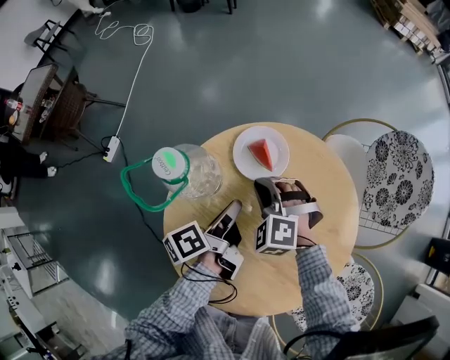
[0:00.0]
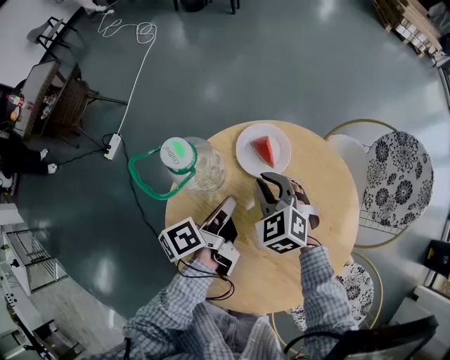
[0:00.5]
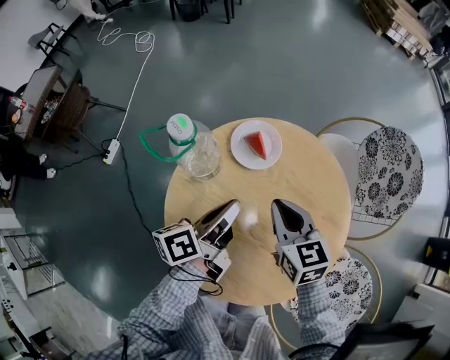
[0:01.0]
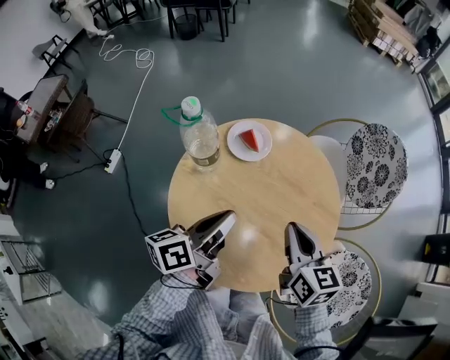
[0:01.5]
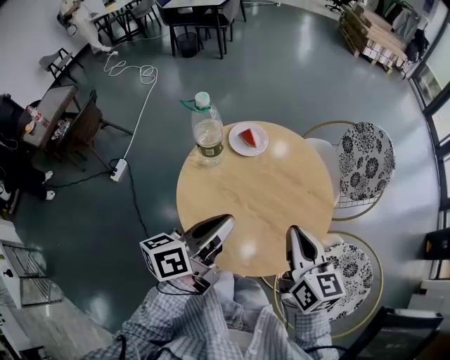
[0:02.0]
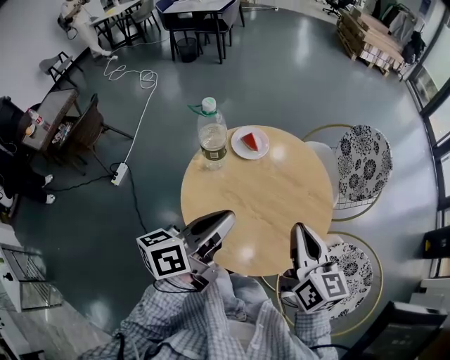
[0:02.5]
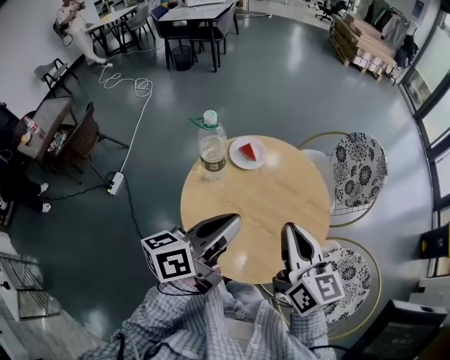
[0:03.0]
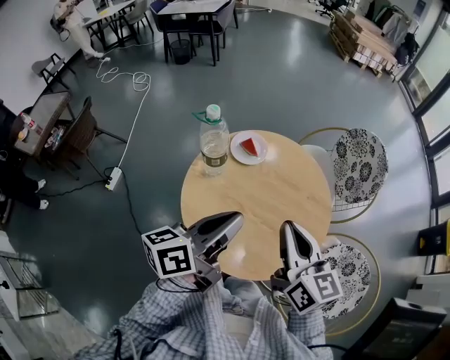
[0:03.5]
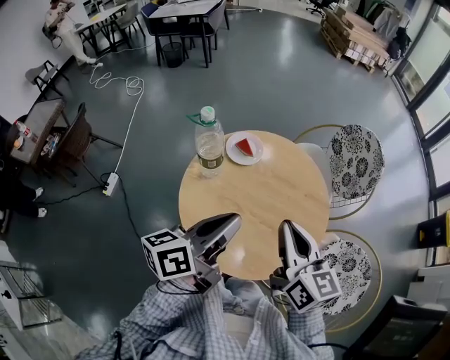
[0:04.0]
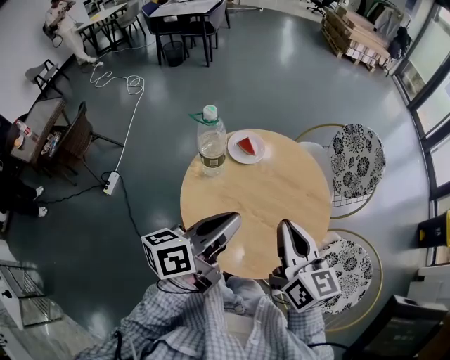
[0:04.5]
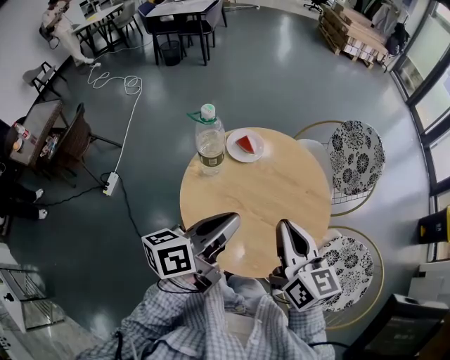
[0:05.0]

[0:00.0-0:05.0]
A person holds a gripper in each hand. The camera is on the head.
0:00.0 to 0:02.5: The right gripper moves roughly 35 cm, and twists about 80 degrees clockwise, seen from behind.
0:02.5 to 0:05.0: The right gripper shifts by approximately 5 cm.

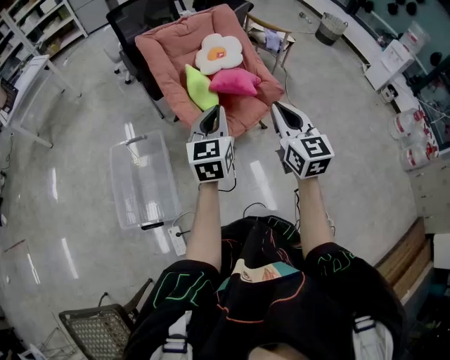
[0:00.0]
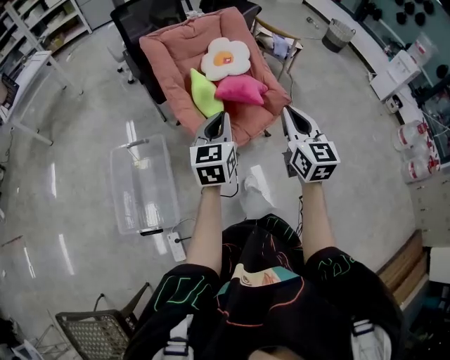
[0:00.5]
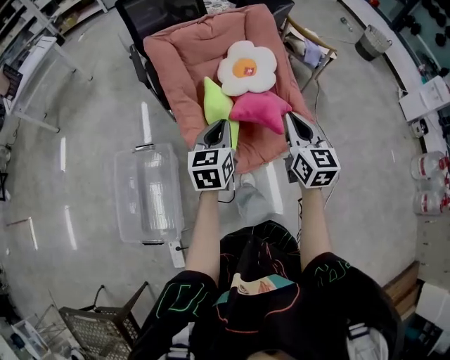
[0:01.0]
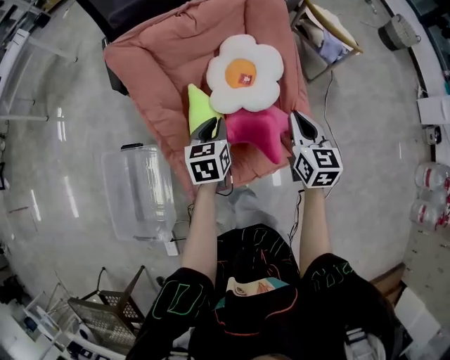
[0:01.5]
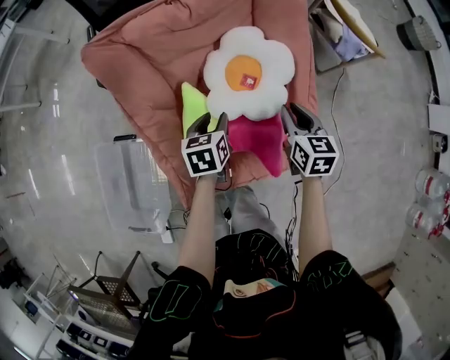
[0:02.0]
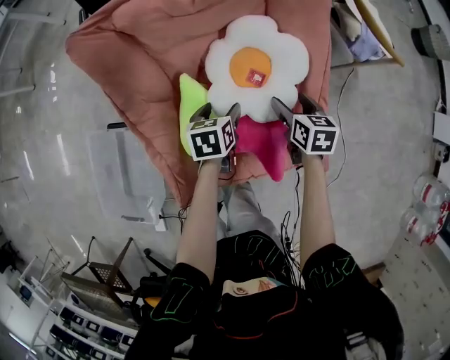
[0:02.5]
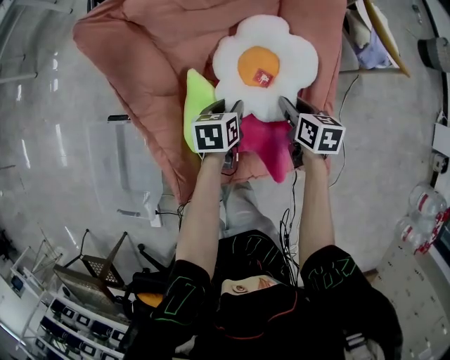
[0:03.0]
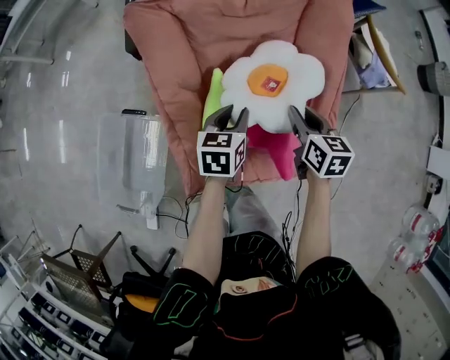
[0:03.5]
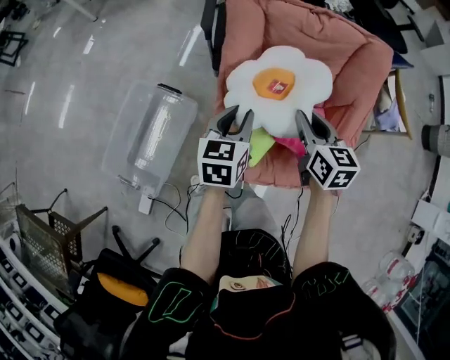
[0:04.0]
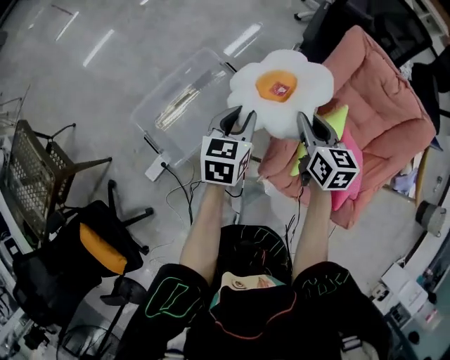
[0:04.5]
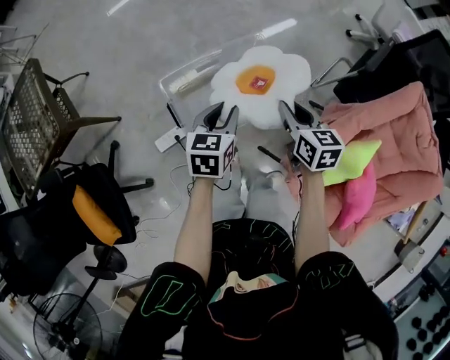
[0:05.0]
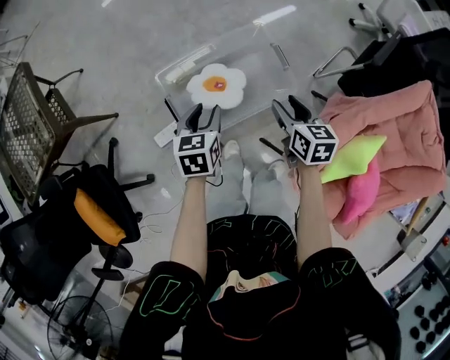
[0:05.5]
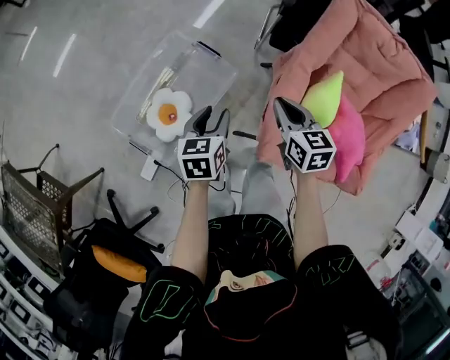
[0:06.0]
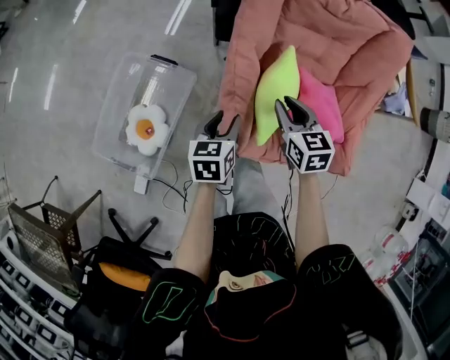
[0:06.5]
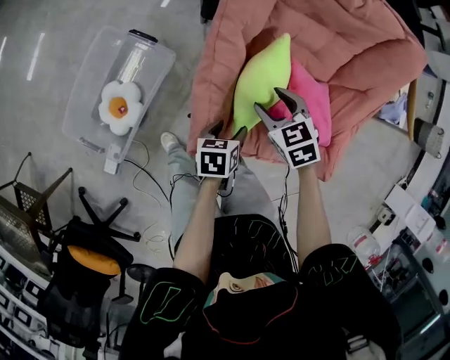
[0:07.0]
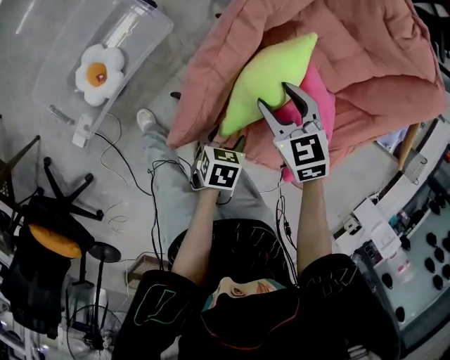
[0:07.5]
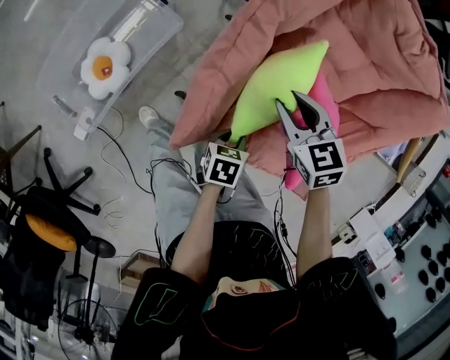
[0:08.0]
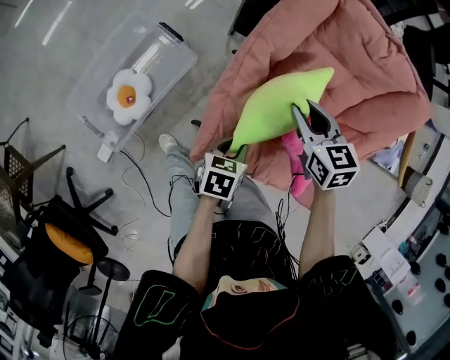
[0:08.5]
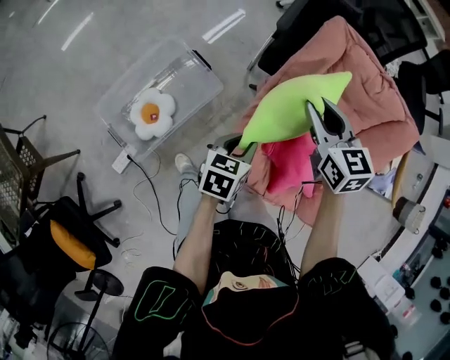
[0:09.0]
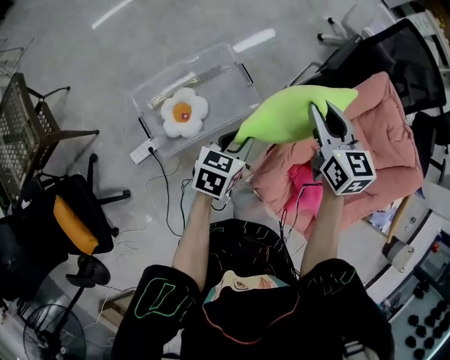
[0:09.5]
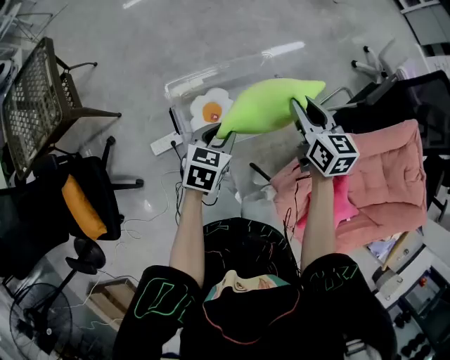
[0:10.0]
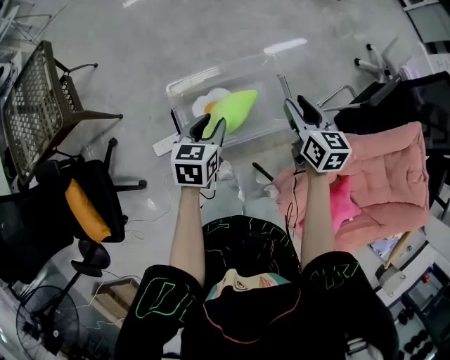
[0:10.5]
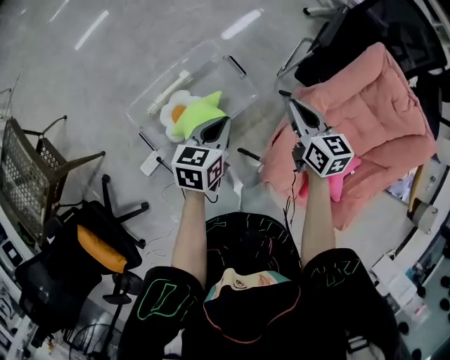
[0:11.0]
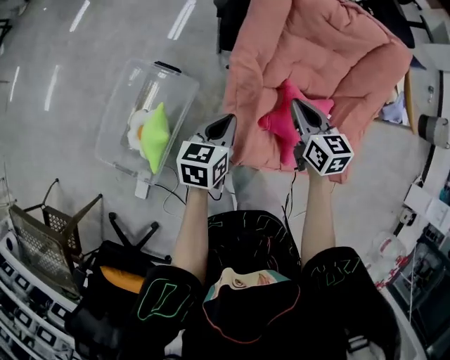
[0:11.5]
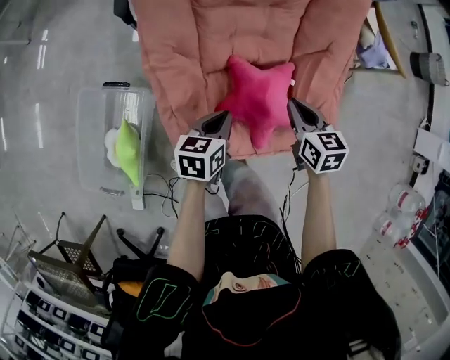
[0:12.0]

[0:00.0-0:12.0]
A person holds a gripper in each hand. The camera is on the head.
0:00.0 to 0:02.0: Both grippers are carried forward, some 60 cm. Both grippers travel together downward, some 30 cm. The right gripper tips its fingers downward by approximately 30 degrees. Meanwhile the left gripper tilts its fingers about 40 degrees downward, and opens up.
0:02.0 to 0:04.0: The left gripper is displaced to the left, upward and backward by about 25 cm, and rotates approximately 20 degrees, while the right gripper goes about 25 cm to the left and upward, turns by about 20 degrees, and opens and closes again.
0:04.0 to 0:06.0: The left gripper turns by approximately 20 degrees.
0:06.0 to 0:08.0: The left gripper shifts approximately 40 cm to the right and downward, and swivels about 30 degrees; the right gripper shifts approximately 25 cm to the right and downward, and turns by some 30 degrees.
0:08.0 to 0:10.0: Both grippers are carried roughly 50 cm. The right gripper swivels approximately 30 degrees. Meanwhile the left gripper swivels about 40 degrees.
0:10.0 to 0:12.0: Both grippers are carried roughly 60 cm. The left gripper swivels some 50 degrees; the right gripper rotates roughly 60 degrees.

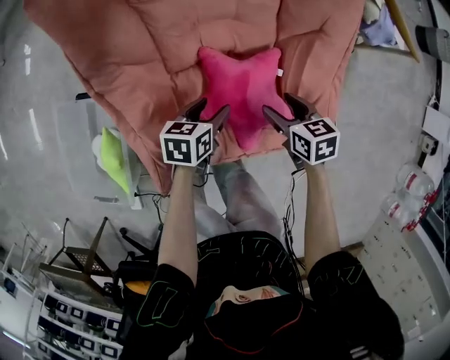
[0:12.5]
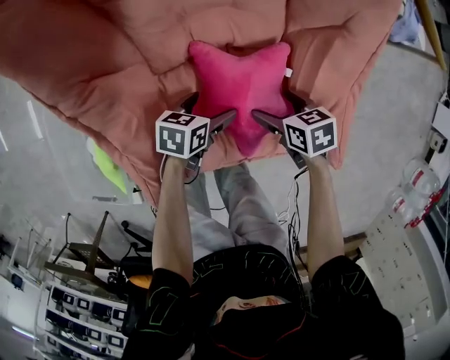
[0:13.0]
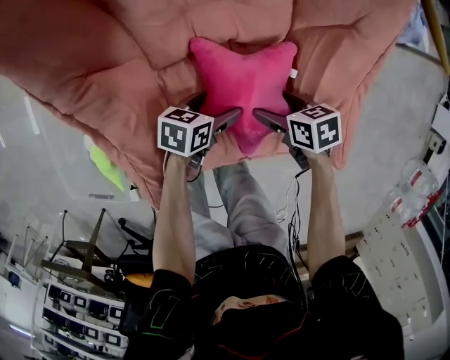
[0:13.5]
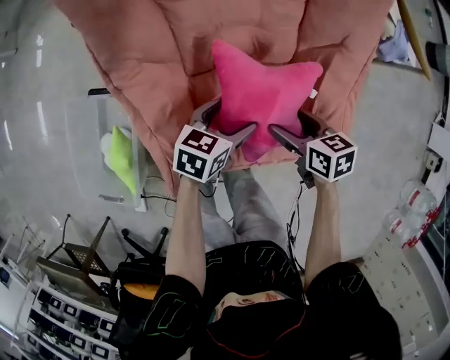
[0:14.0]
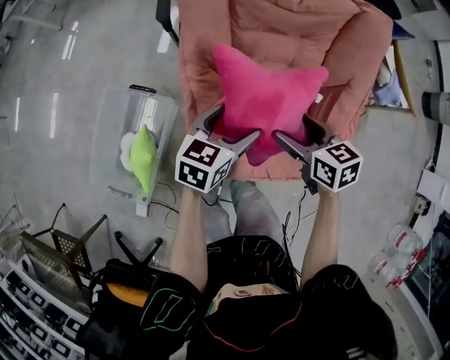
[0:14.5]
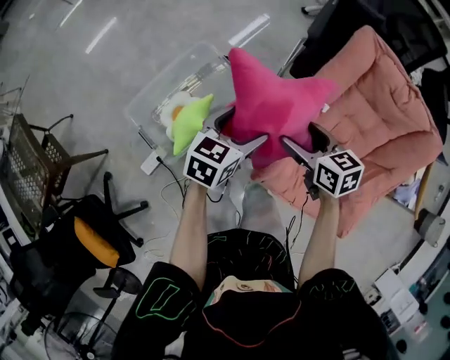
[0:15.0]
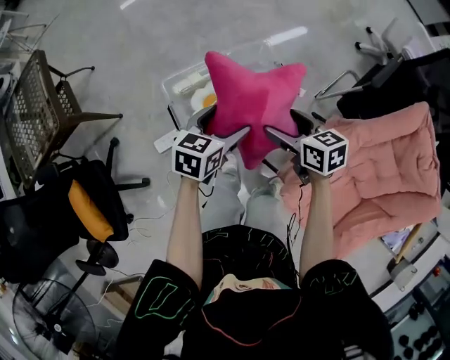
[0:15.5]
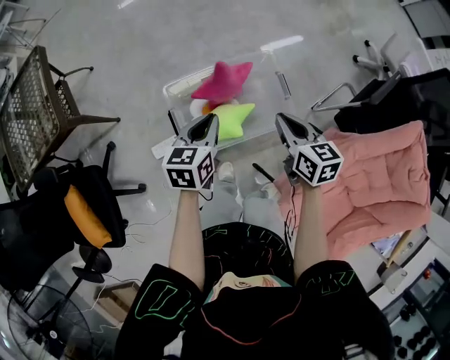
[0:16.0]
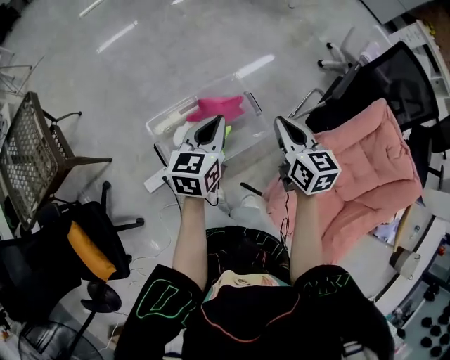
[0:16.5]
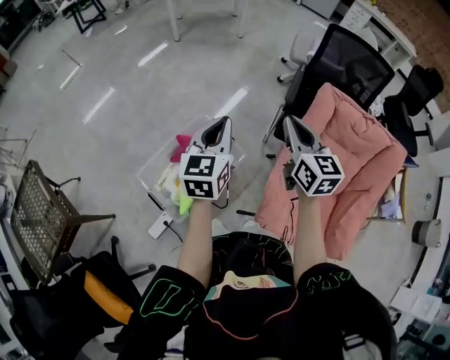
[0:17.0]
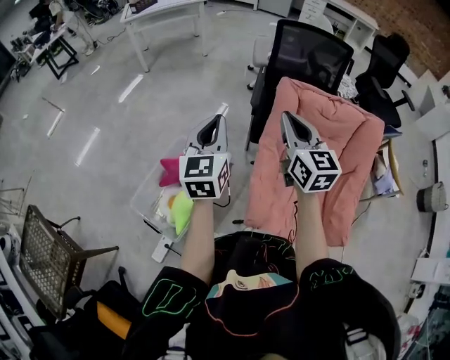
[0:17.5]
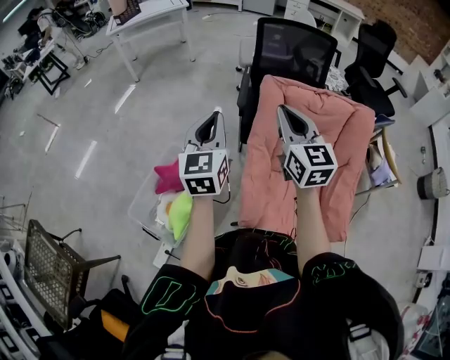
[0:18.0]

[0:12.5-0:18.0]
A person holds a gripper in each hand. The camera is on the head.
0:12.5 to 0:14.5: Both grippers move upward, about 20 cm. The left gripper rotates about 20 degrees.
0:14.5 to 0:16.0: The pair of grippers is taken about 60 cm. The left gripper swivels approximately 70 degrees, and closes. Meanwhile the right gripper changes its angle by roughly 40 degrees, and closes its fingers.
0:16.0 to 0:18.0: The left gripper changes place by roughly 50 cm, and swivels roughly 50 degrees; the right gripper changes place by roughly 50 cm, and angles its fingers upward, by some 30 degrees.

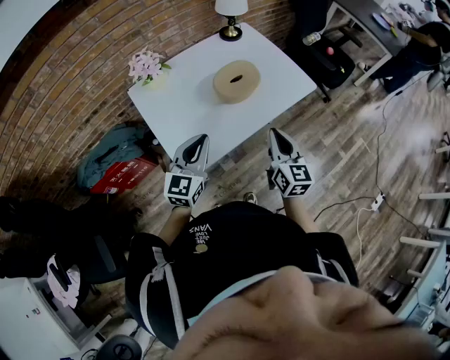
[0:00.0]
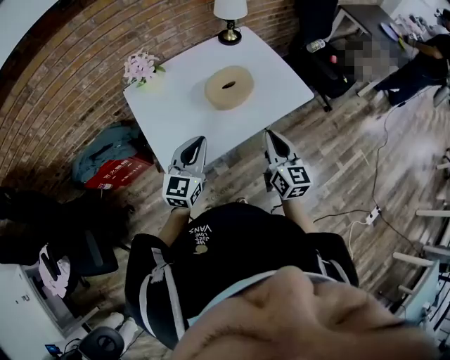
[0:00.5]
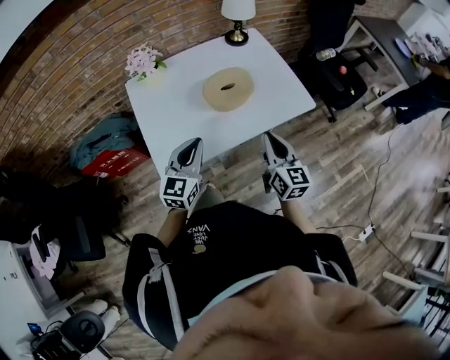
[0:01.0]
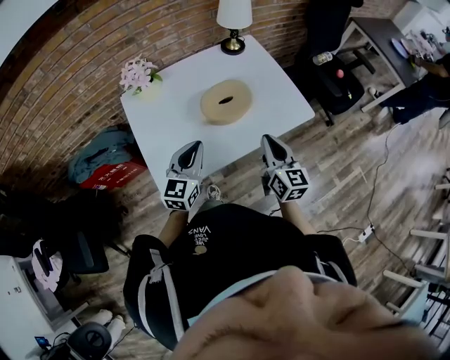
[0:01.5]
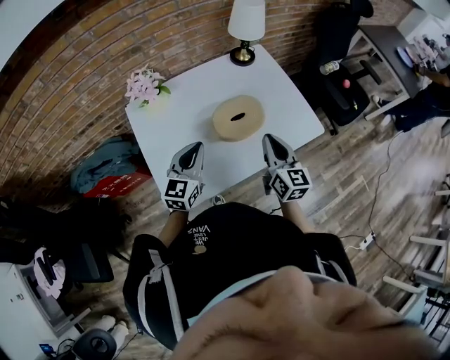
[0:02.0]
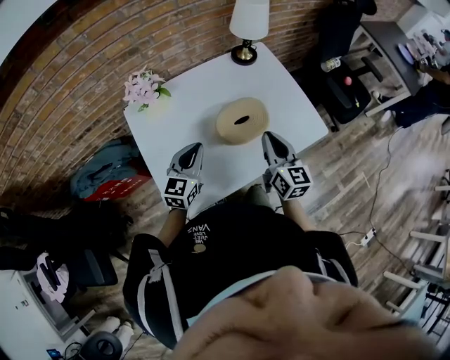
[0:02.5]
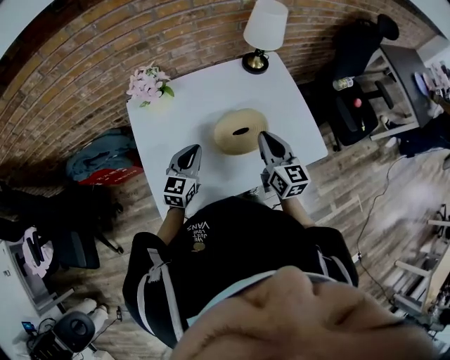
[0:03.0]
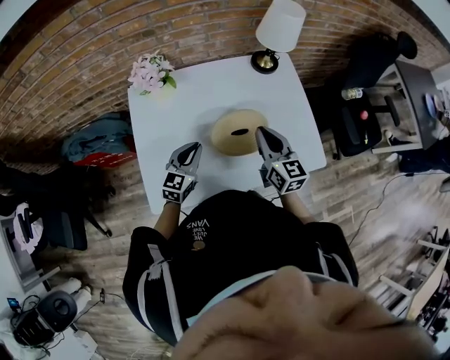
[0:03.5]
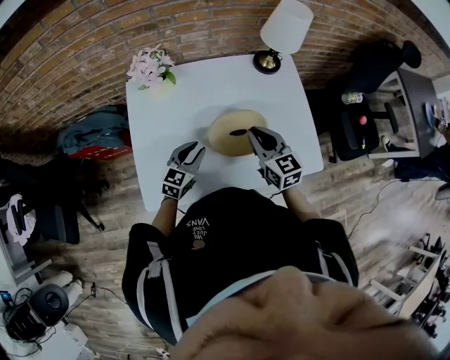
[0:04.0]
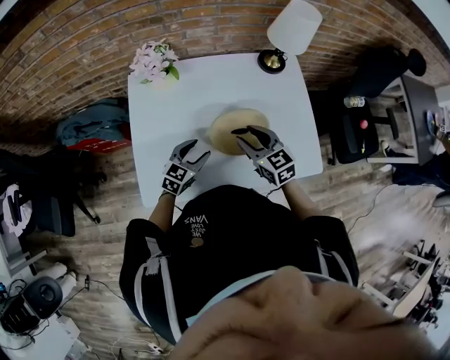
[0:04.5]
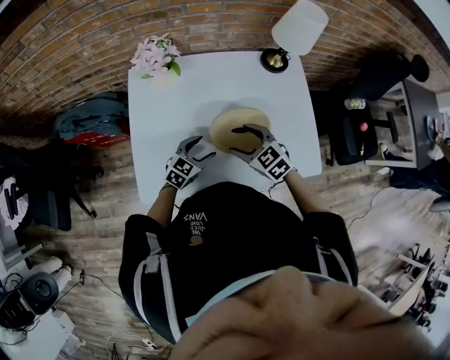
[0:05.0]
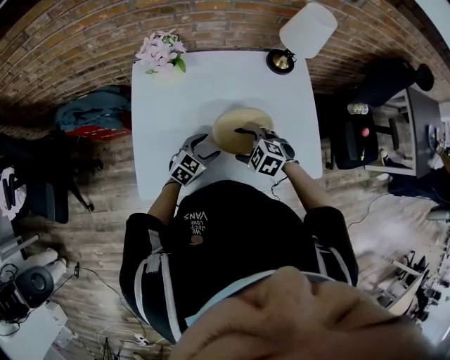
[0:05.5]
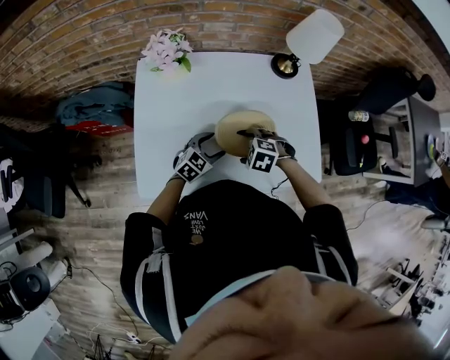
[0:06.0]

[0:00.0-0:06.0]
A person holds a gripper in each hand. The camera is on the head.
0:00.0 to 0:02.0: Both grippers move forward, approximately 15 cm.
0:02.0 to 0:04.0: The right gripper shifts roughly 15 cm forward, and turns by roughly 40 degrees. Meanwhile the left gripper heads downward and forward, covering roughly 15 cm.
0:04.0 to 0:06.0: The left gripper moves downward, approximately 5 cm, and opens its fingers. Meanwhile the right gripper travels downward by some 15 cm, points its fingers approximately 60 degrees further downward, and opens its fingers.
